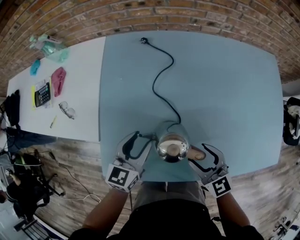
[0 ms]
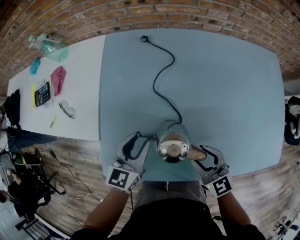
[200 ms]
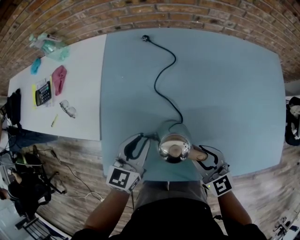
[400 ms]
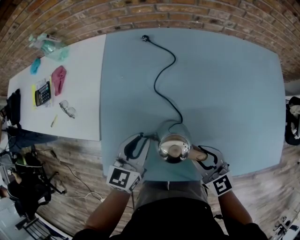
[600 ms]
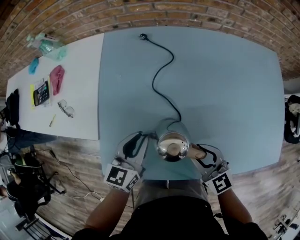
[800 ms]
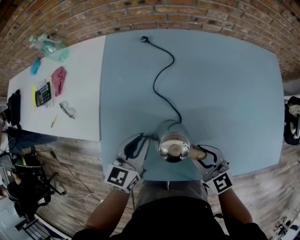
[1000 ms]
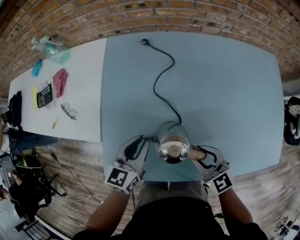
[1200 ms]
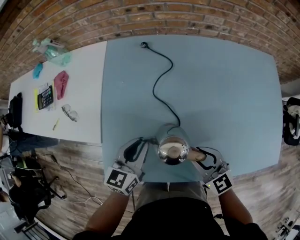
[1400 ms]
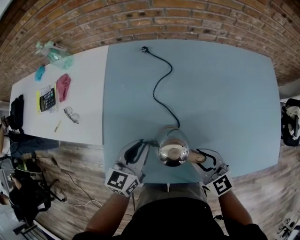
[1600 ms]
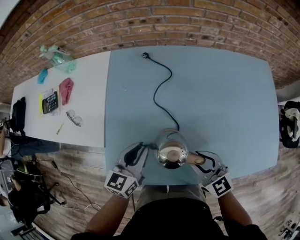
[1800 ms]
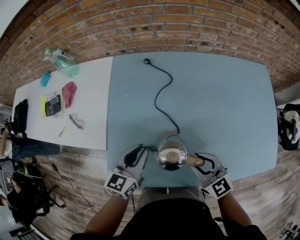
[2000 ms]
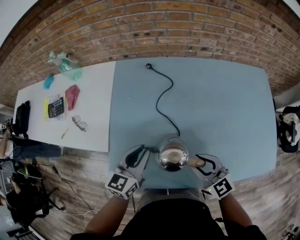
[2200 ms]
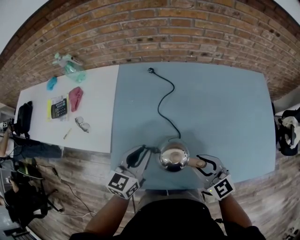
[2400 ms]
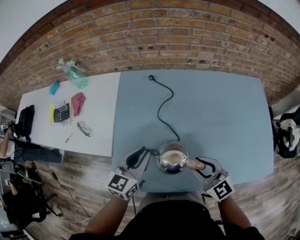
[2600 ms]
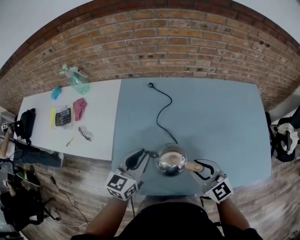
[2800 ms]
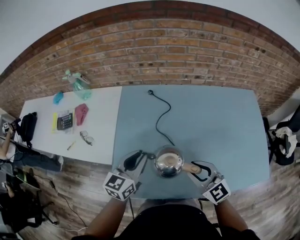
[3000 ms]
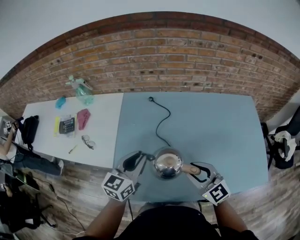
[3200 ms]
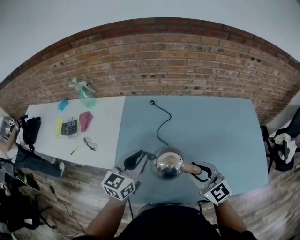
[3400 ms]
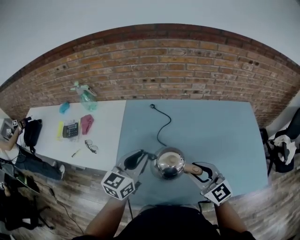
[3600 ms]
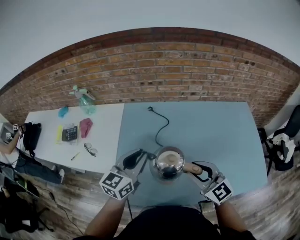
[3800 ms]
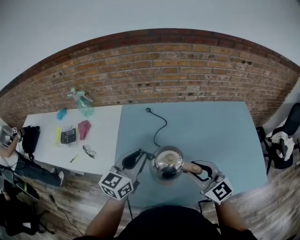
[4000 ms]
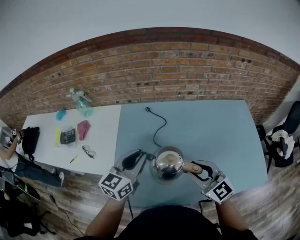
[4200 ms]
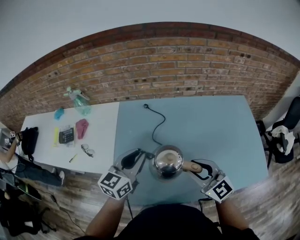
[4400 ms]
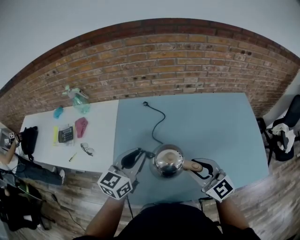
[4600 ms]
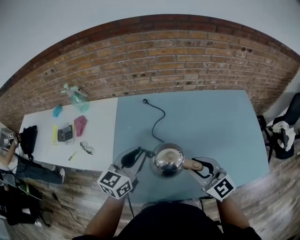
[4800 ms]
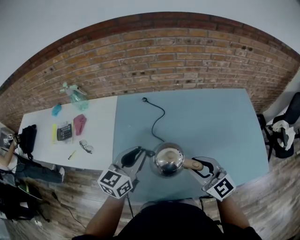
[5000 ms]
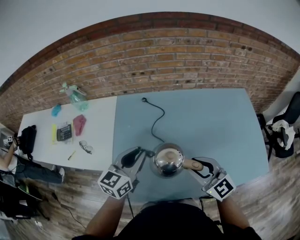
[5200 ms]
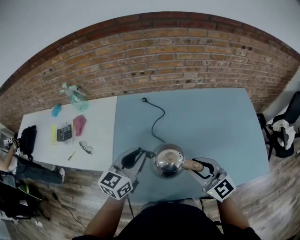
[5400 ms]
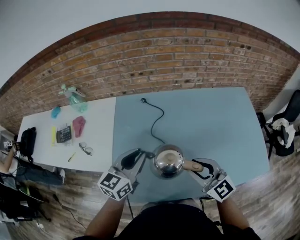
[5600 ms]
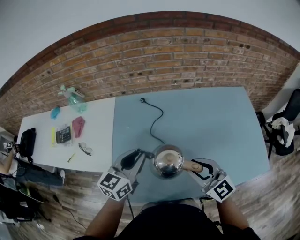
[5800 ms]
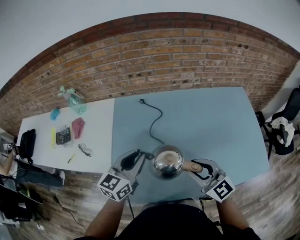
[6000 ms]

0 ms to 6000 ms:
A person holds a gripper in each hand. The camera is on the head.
0 ms to 1600 ms: The right gripper closes up, while the left gripper closes up.
1600 ms to 3000 ms: The two grippers go some 10 cm upward.
3000 ms to 4400 ms: Both grippers move upward, about 5 cm.
4400 ms to 6000 ms: The grippers move only a little.

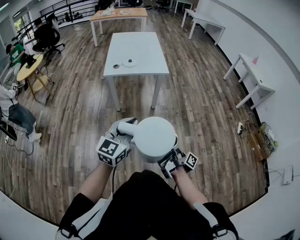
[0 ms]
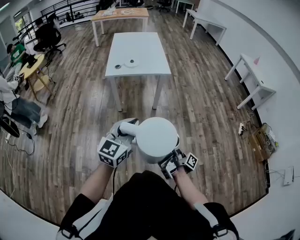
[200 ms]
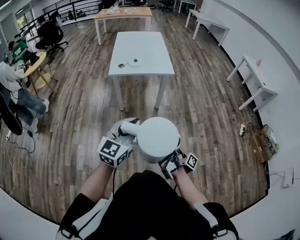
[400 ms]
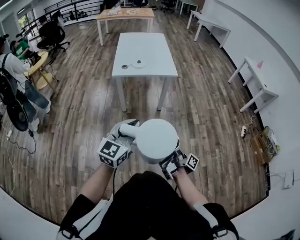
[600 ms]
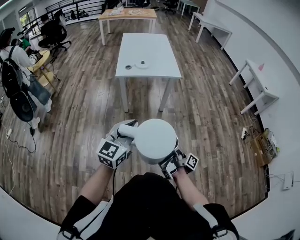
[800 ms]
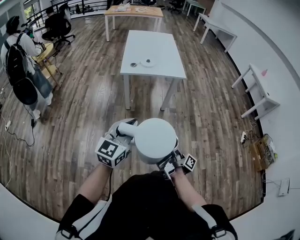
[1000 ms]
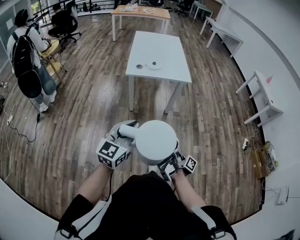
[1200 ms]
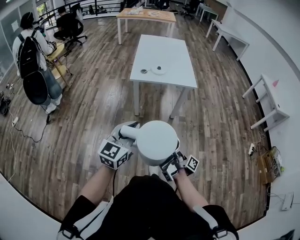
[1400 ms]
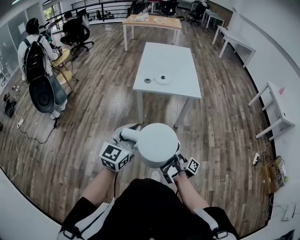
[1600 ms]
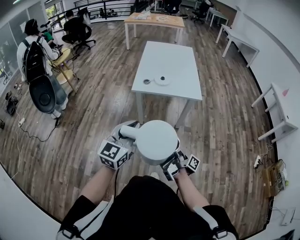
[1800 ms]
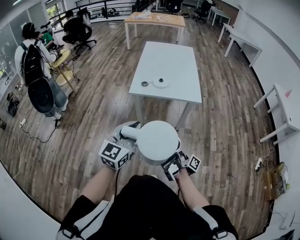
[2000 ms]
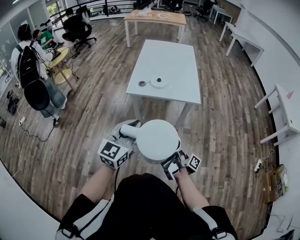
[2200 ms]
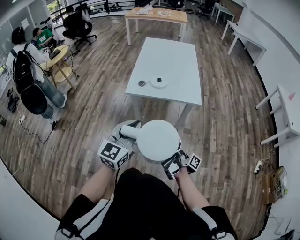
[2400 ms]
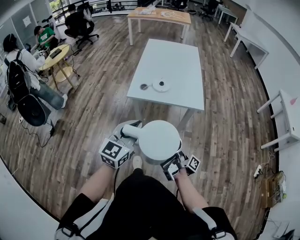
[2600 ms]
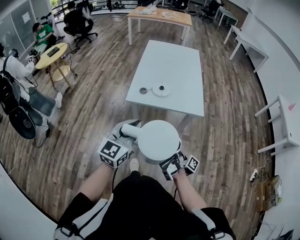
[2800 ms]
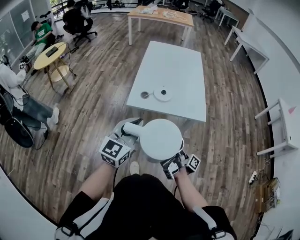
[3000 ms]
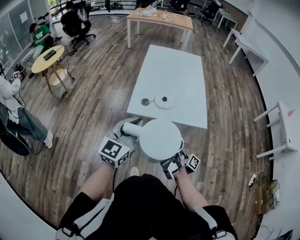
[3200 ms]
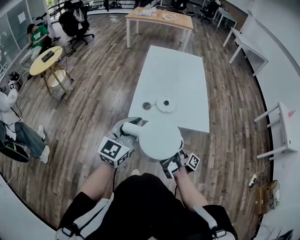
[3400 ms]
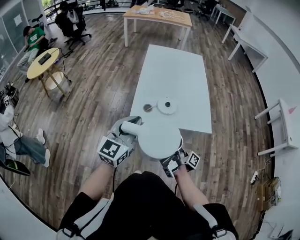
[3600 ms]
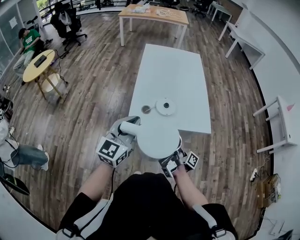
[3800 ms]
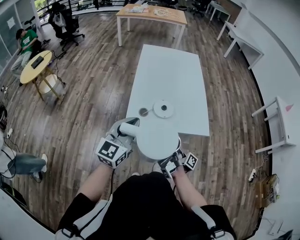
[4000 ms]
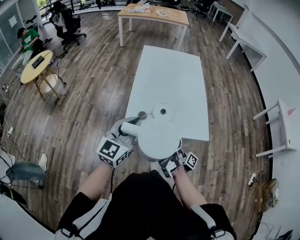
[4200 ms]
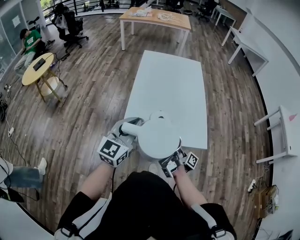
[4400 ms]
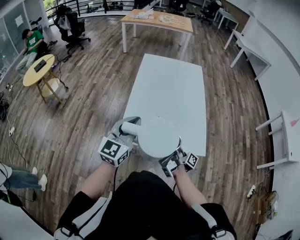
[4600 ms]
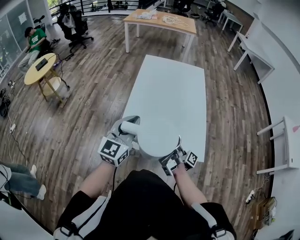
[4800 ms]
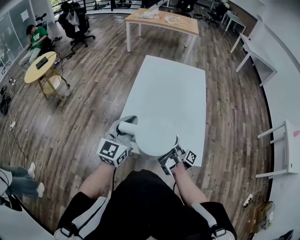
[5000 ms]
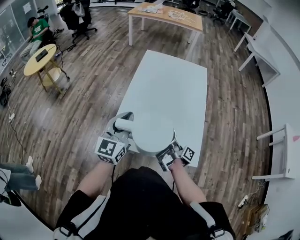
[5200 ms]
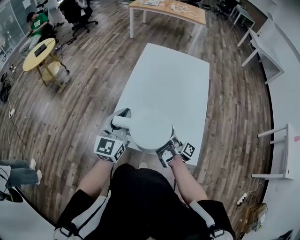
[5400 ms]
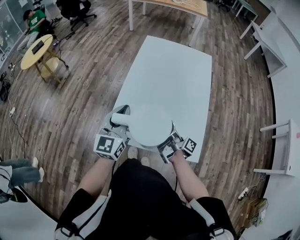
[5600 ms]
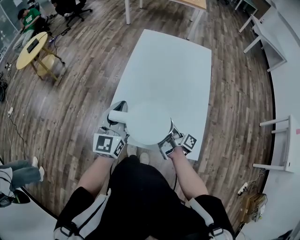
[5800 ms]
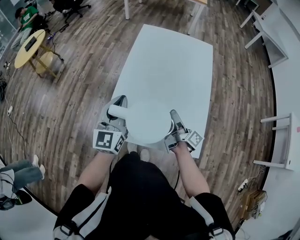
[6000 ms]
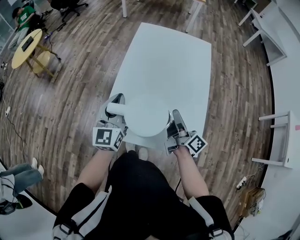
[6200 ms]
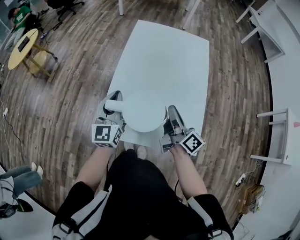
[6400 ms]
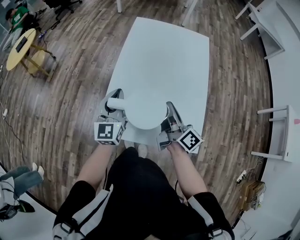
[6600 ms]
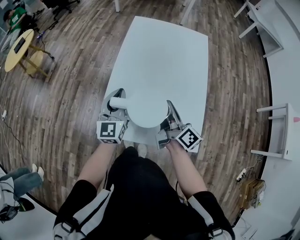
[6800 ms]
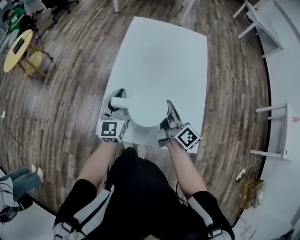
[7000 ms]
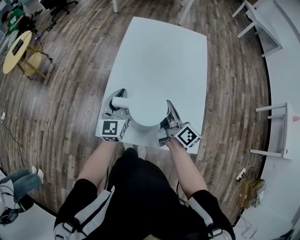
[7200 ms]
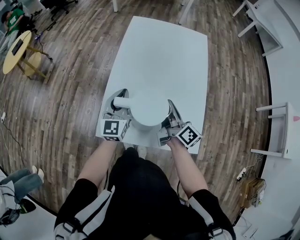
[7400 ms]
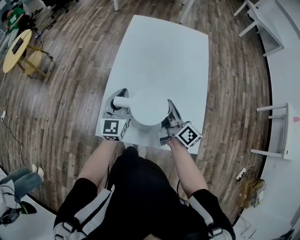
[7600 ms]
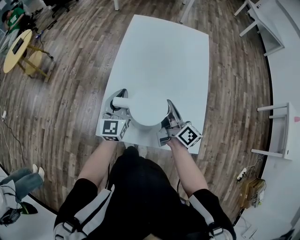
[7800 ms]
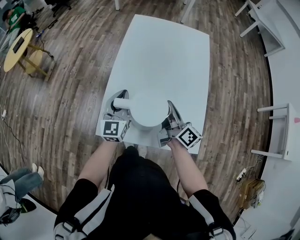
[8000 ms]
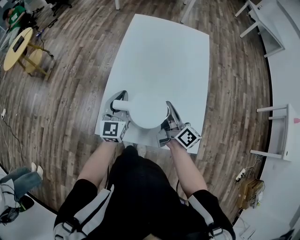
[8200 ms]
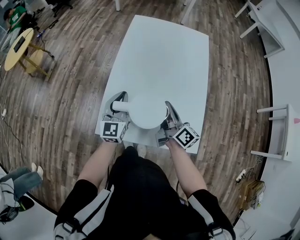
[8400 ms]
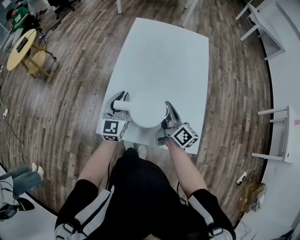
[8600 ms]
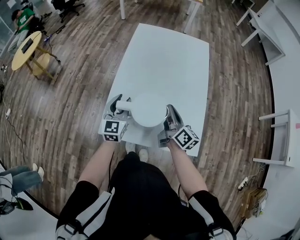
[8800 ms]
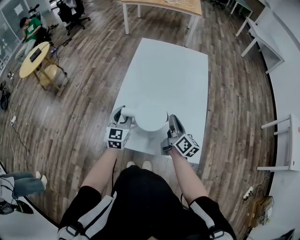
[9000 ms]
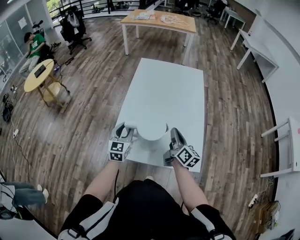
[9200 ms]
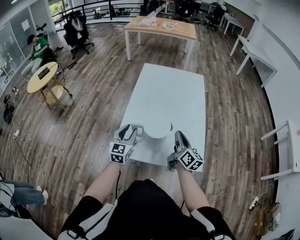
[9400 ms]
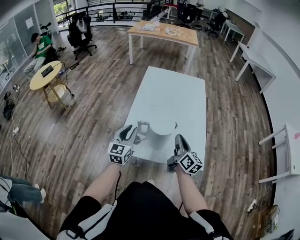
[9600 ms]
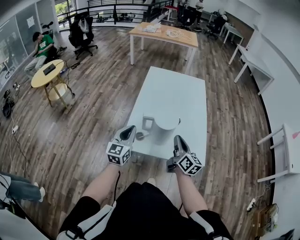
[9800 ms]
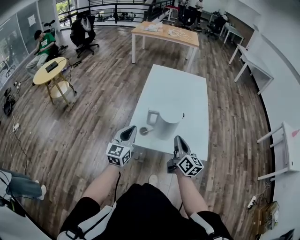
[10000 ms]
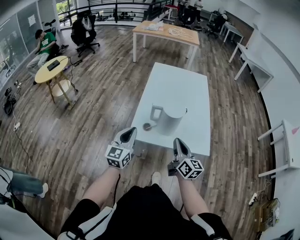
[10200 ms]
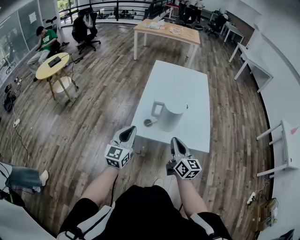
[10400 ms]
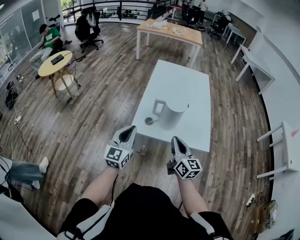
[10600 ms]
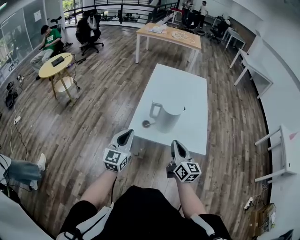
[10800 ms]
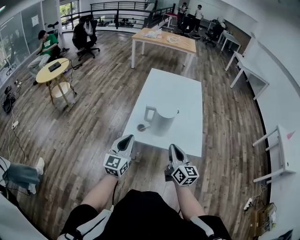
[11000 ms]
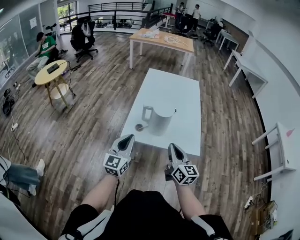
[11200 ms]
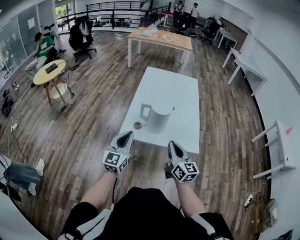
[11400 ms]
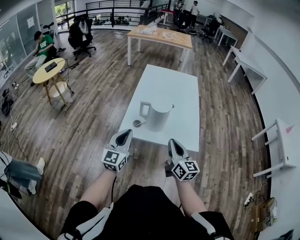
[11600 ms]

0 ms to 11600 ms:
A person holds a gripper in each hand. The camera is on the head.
0 ms to 1400 ms: The left gripper changes place by roughly 15 cm.
1400 ms to 2800 ms: The left gripper moves some 25 cm.
2800 ms to 4400 ms: The left gripper shifts by some 25 cm.
4400 ms to 5800 ms: The left gripper shifts by some 15 cm, and changes its angle by about 20 degrees.
5800 ms to 7200 ms: The left gripper travels downward by approximately 10 cm.
7200 ms to 8800 ms: The left gripper opens.
8800 ms to 10200 ms: The left gripper ends up about 25 cm from where it was, and closes its fingers.
10200 ms to 11600 ms: The left gripper moves some 5 cm.

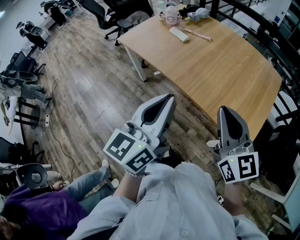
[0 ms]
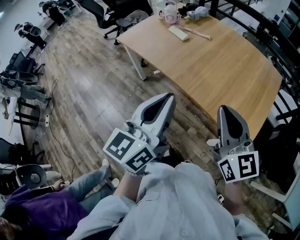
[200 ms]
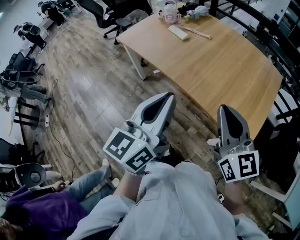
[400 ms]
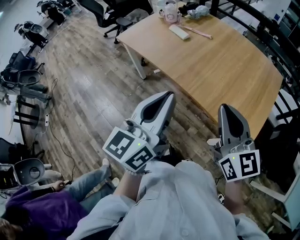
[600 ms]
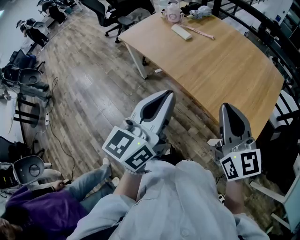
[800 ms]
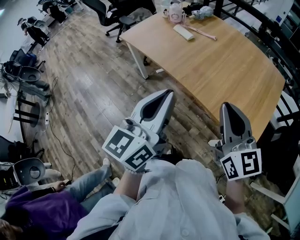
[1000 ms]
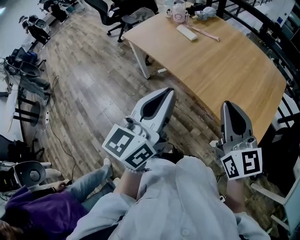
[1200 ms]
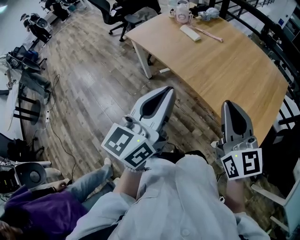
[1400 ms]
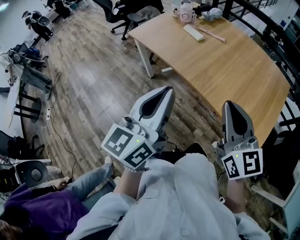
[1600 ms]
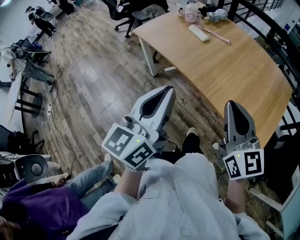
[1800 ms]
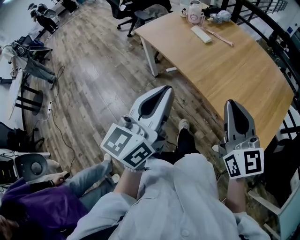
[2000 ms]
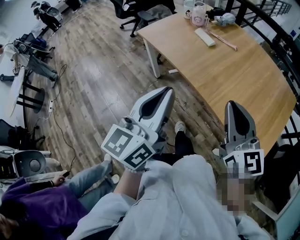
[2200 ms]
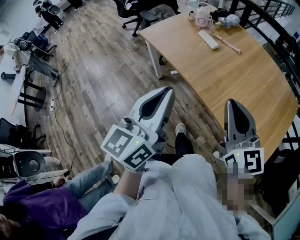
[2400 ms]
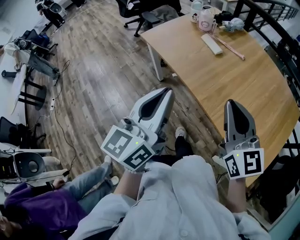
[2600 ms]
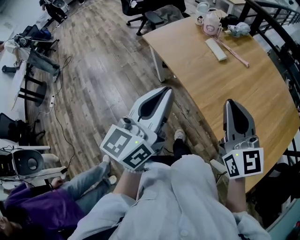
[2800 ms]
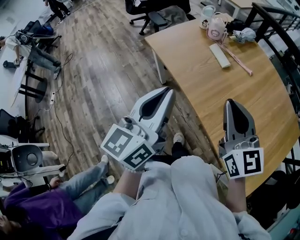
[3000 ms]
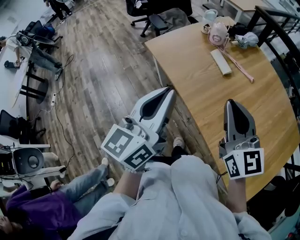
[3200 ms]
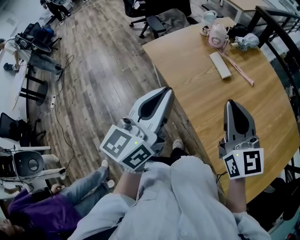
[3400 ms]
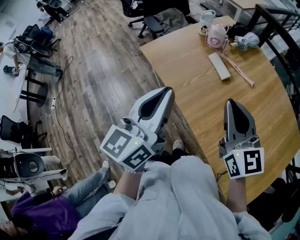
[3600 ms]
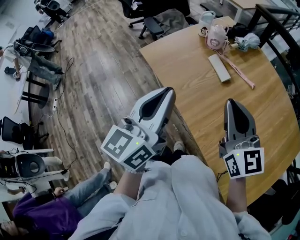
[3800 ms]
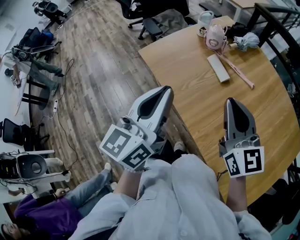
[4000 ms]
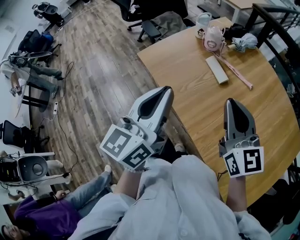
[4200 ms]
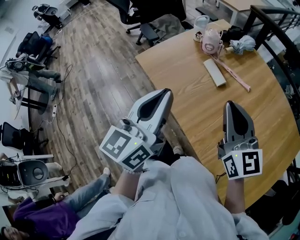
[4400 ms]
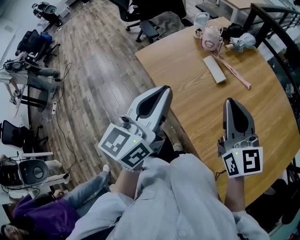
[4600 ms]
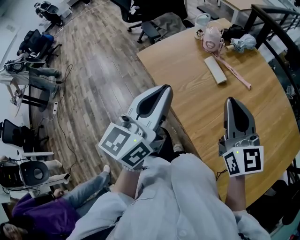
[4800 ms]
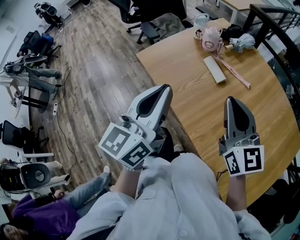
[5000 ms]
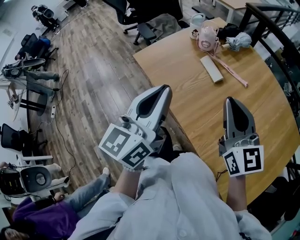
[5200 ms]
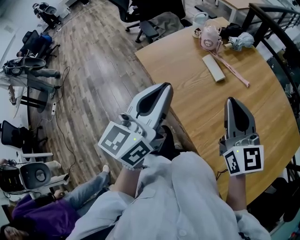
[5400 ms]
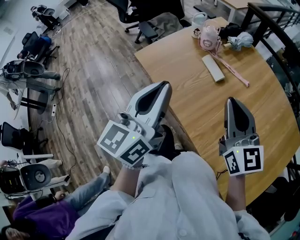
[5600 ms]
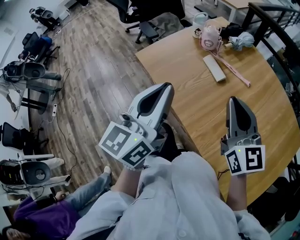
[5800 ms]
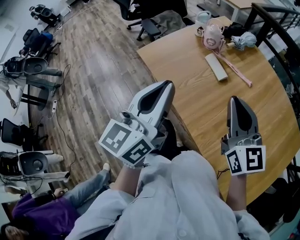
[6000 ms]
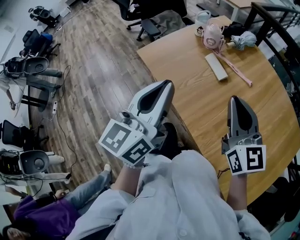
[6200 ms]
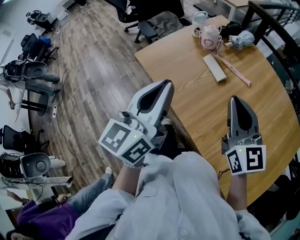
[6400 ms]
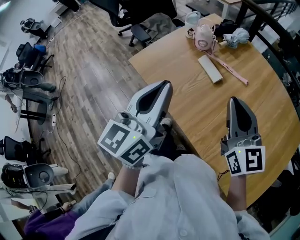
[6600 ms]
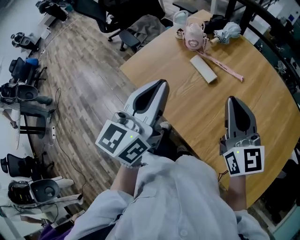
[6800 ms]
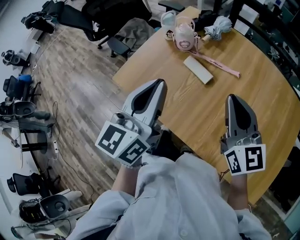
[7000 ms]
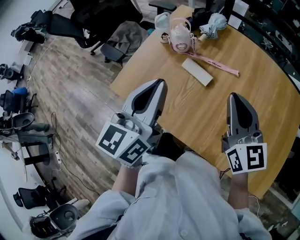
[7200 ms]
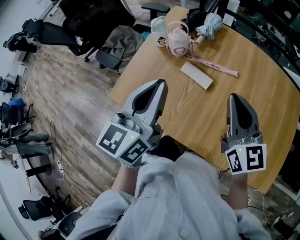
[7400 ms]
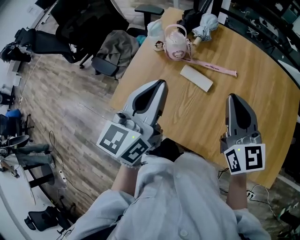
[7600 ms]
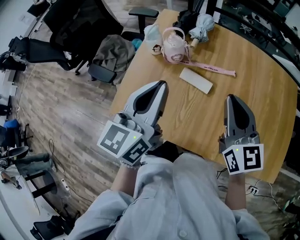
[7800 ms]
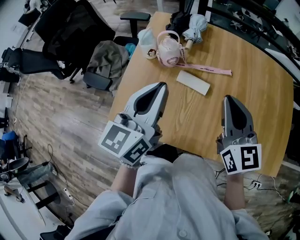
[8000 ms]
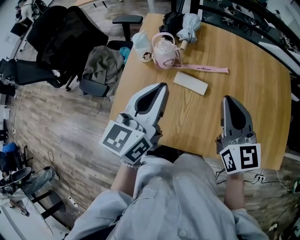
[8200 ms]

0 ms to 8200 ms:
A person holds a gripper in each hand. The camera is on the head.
0 ms to 1600 ms: Both grippers move to the left, about 10 cm.
1600 ms to 3200 ms: The grippers both shift forward by about 25 cm.
3200 ms to 5000 ms: The two grippers go roughly 5 cm forward.
5000 ms to 6600 ms: The grippers move only a little.
6600 ms to 8200 ms: The left gripper changes place by approximately 25 cm, and rotates approximately 40 degrees, while the right gripper ends up about 15 cm from where it was, and swivels approximately 40 degrees.
